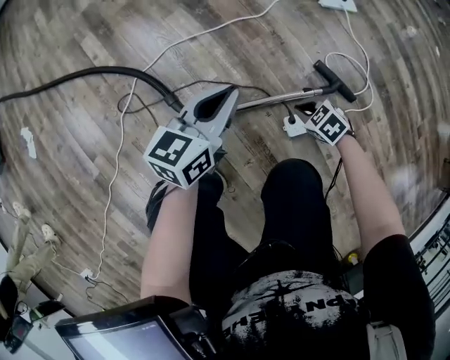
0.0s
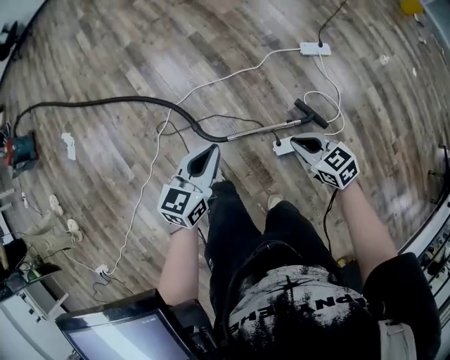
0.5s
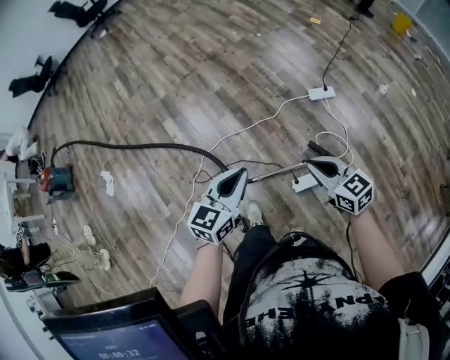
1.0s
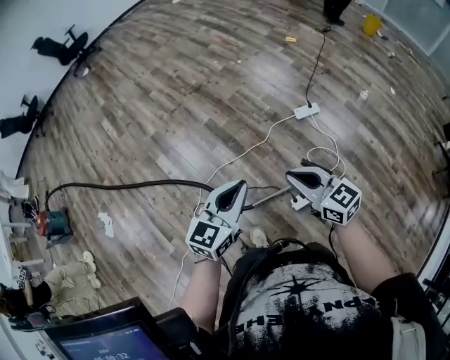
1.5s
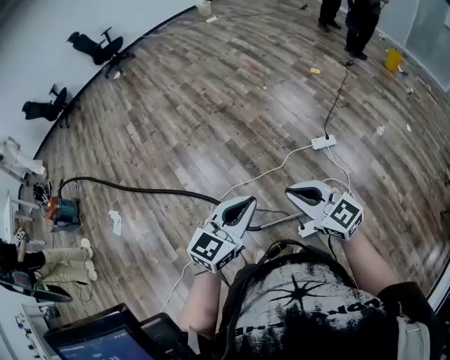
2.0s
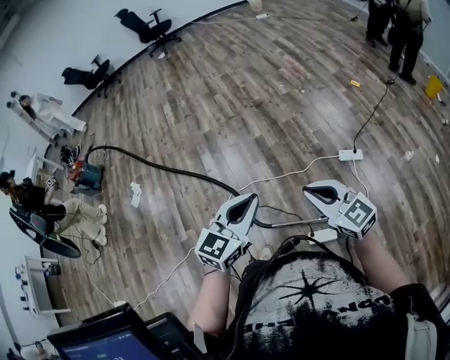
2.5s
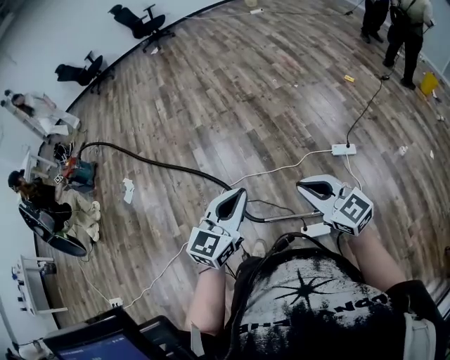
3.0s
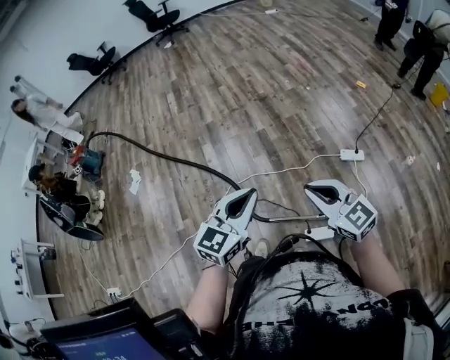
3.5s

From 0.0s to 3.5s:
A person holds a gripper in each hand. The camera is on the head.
From 0.0s to 2.0s: Both grippers move upward, about 70 cm. The left gripper rotates some 20 degrees; the right gripper points its fingers approximately 50 degrees further upward.
From 2.0s to 3.5s: The left gripper changes its angle by some 20 degrees.

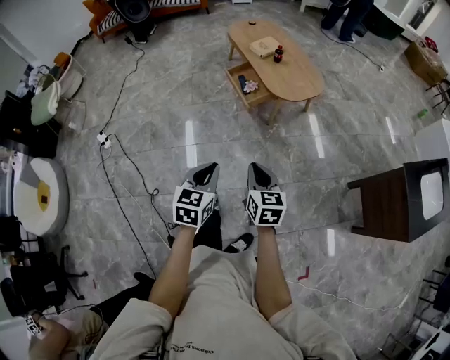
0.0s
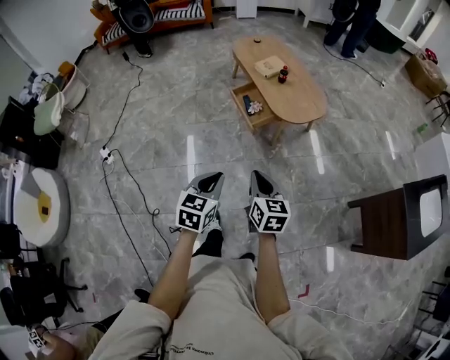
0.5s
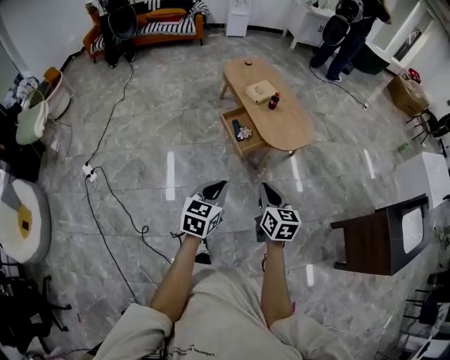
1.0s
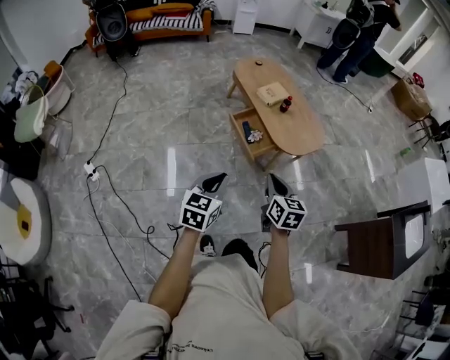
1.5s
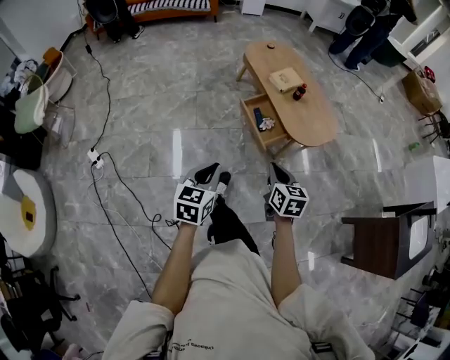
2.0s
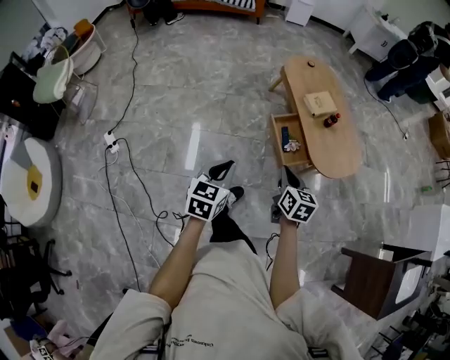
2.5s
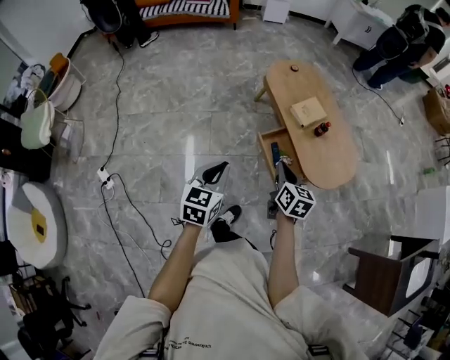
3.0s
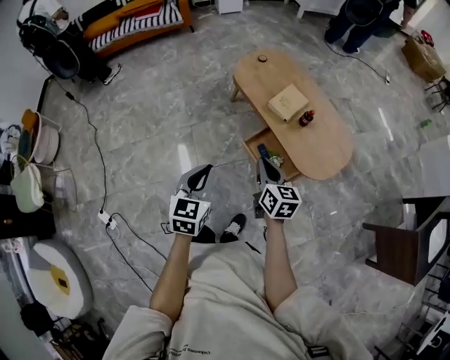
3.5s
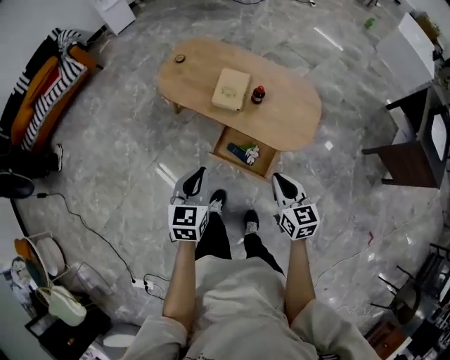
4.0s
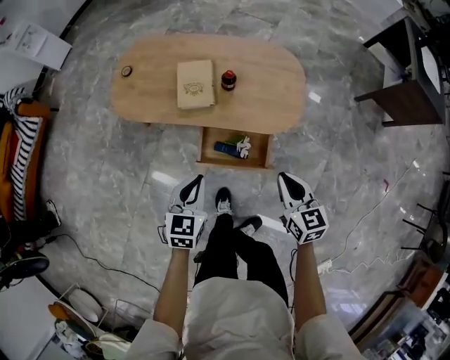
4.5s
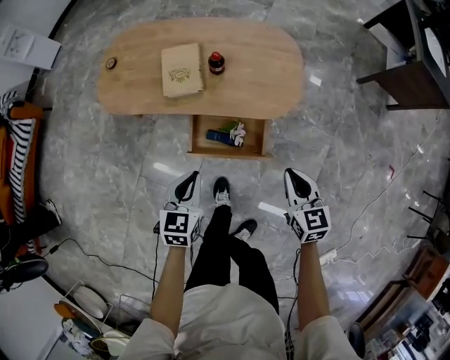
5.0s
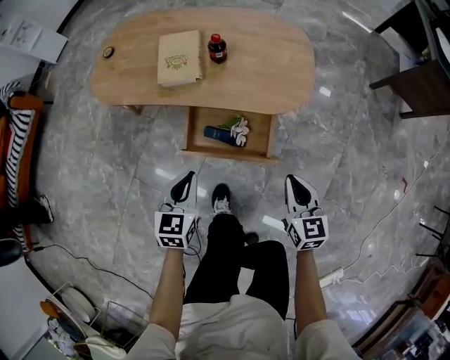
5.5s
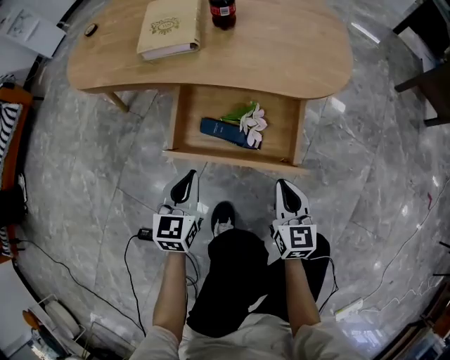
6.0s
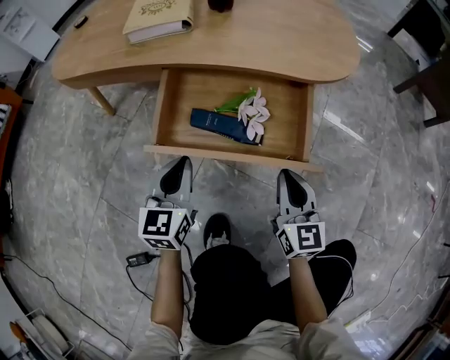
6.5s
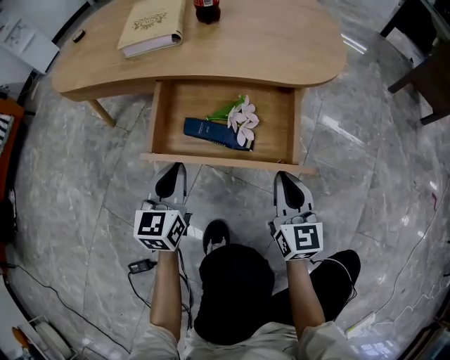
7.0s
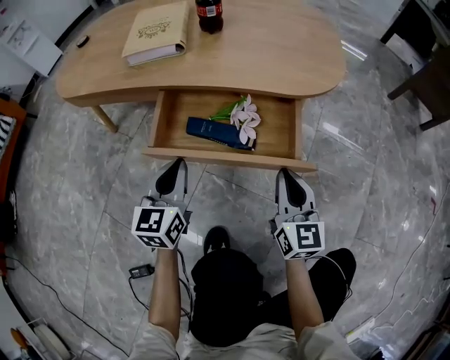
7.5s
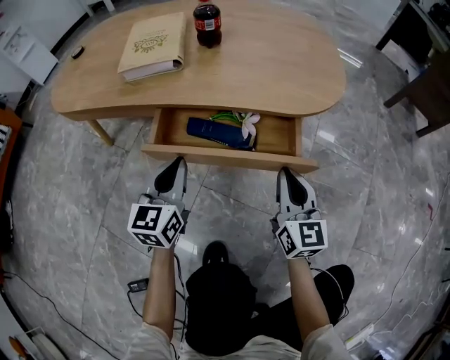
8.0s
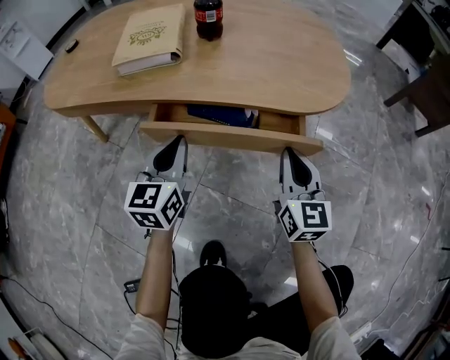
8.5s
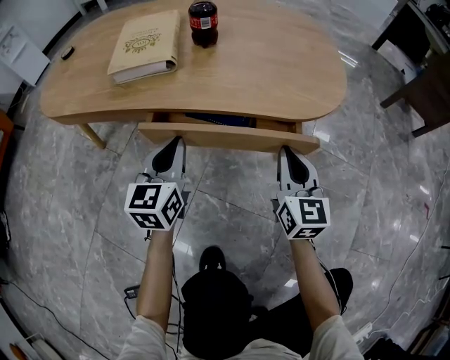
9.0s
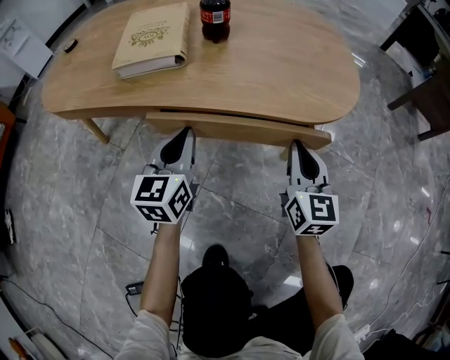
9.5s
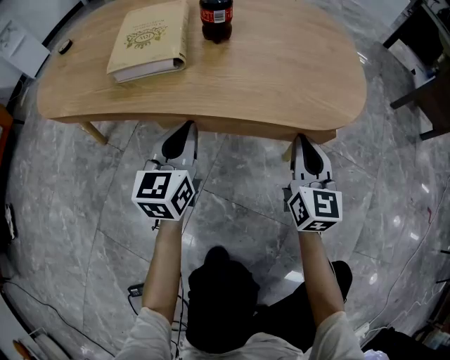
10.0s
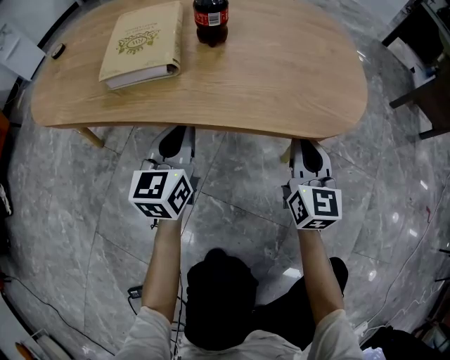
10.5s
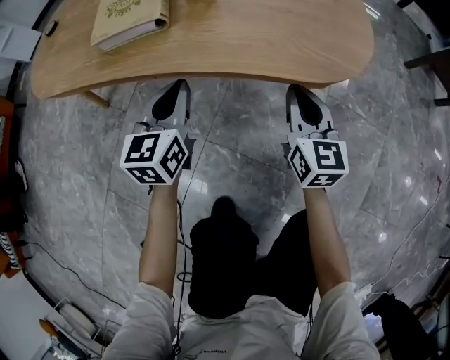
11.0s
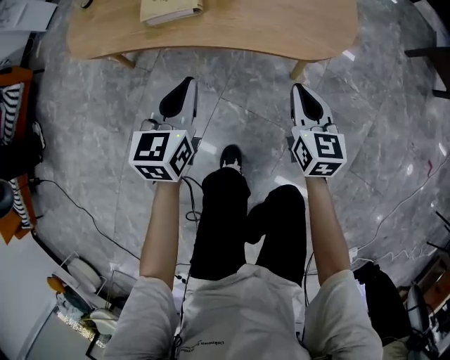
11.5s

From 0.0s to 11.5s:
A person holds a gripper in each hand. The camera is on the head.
From 0.0s to 2.0s: Both grippers travel together forward and to the left, some 30 cm.
From 2.0s to 4.0s: The left gripper ends up approximately 50 cm from where it was, and changes its angle by approximately 30 degrees. The right gripper moves some 35 cm, and turns by approximately 30 degrees.
From 4.0s to 6.0s: Both grippers move downward, approximately 50 cm. The right gripper swivels some 30 degrees.
From 6.0s to 7.5s: The left gripper heads forward, covering roughly 5 cm.
From 7.5s to 9.5s: The two grippers go some 15 cm forward.
From 9.5s to 11.5s: Both grippers travel together upward and backward, approximately 15 cm.

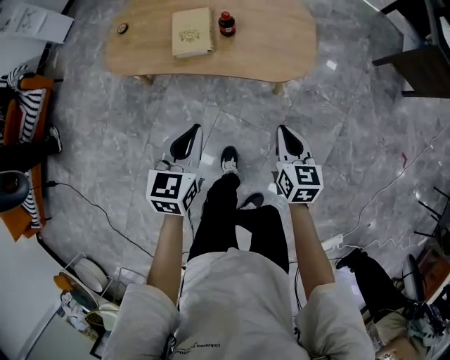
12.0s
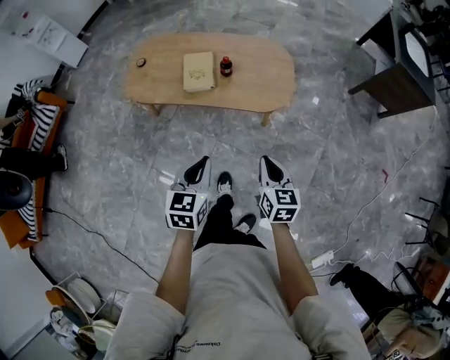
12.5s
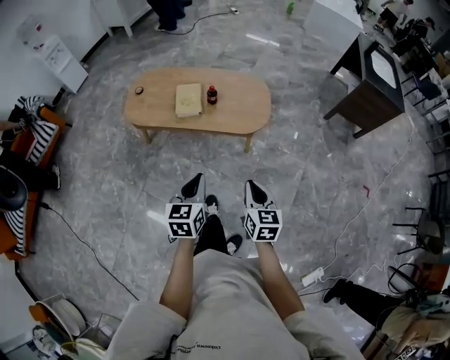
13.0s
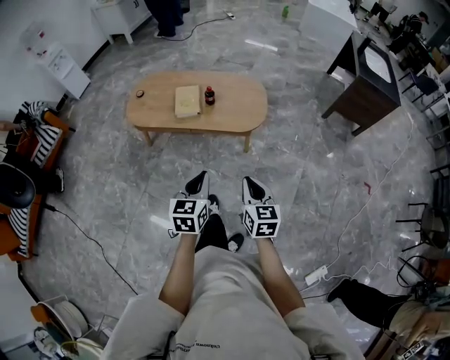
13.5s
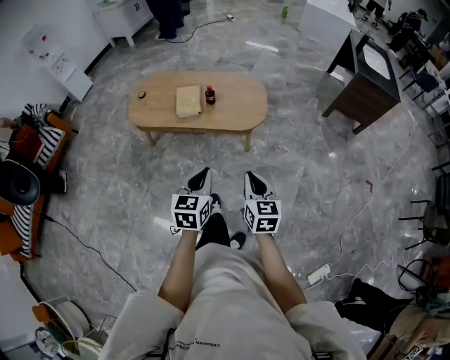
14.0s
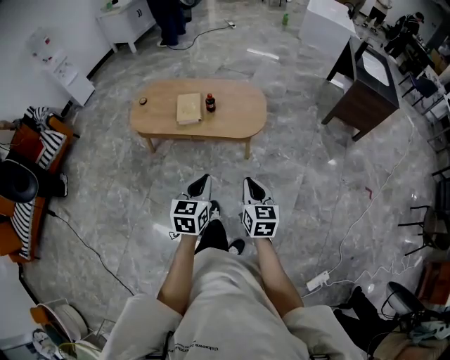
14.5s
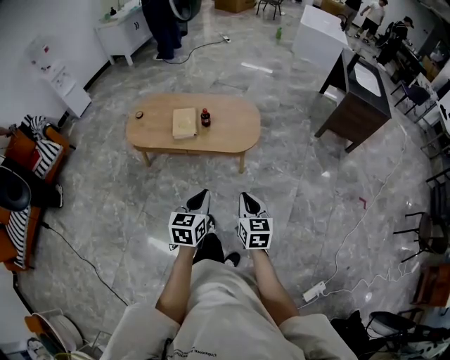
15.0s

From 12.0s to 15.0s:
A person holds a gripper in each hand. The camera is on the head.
From 12.0s to 13.5s: Both grippers travel together backward and upward, about 25 cm.
From 13.5s to 15.0s: There are only small adjustments of the grippers.

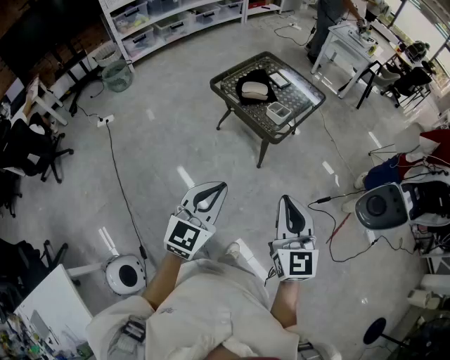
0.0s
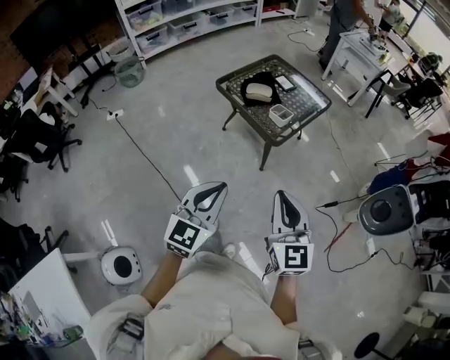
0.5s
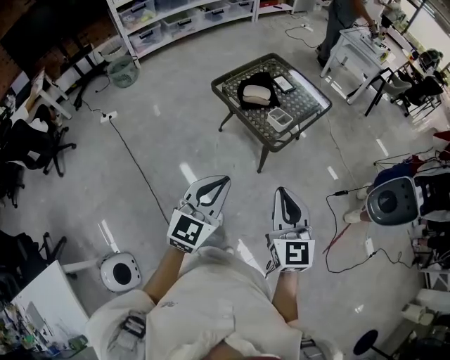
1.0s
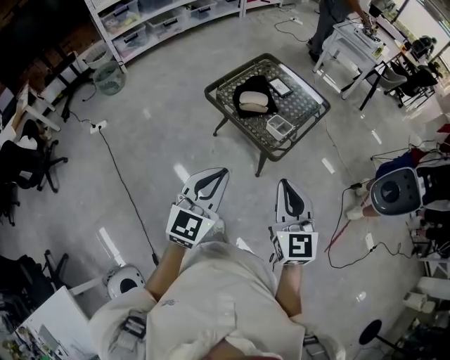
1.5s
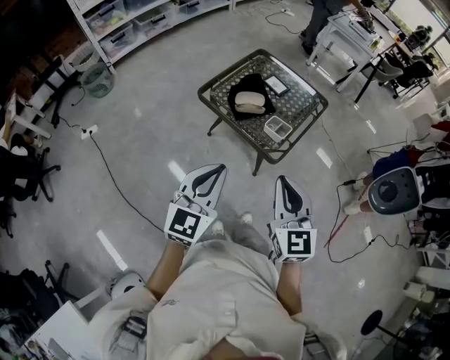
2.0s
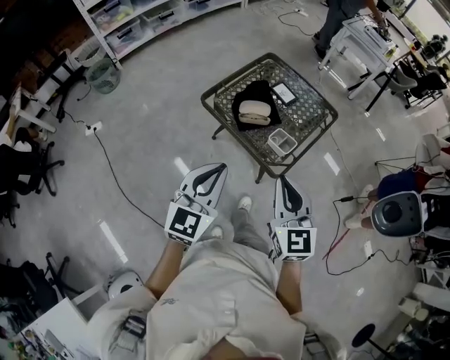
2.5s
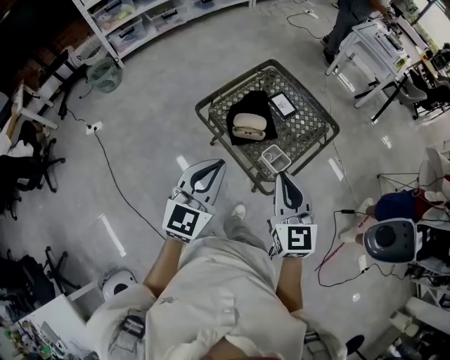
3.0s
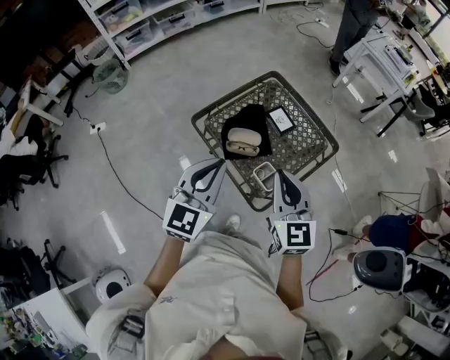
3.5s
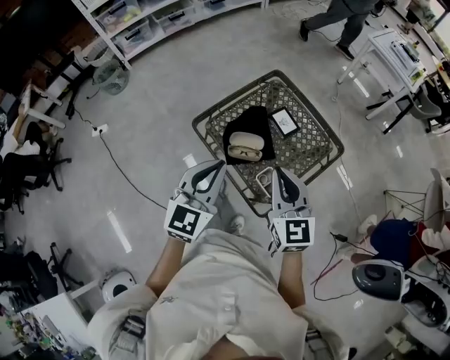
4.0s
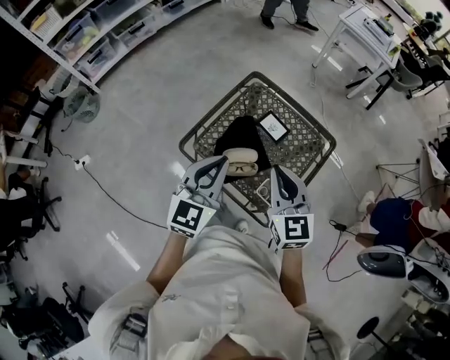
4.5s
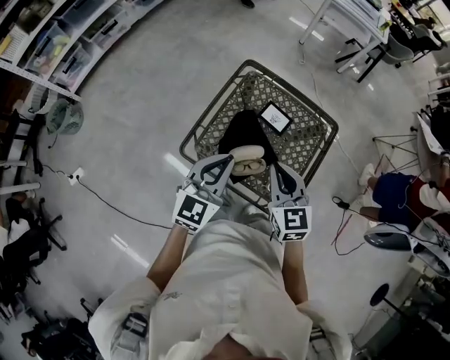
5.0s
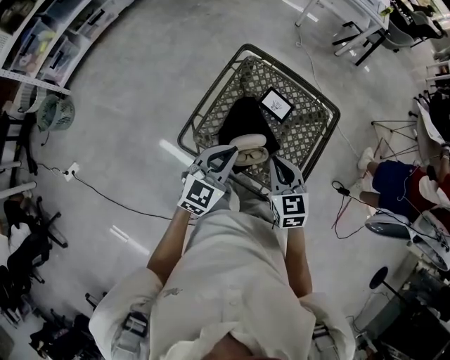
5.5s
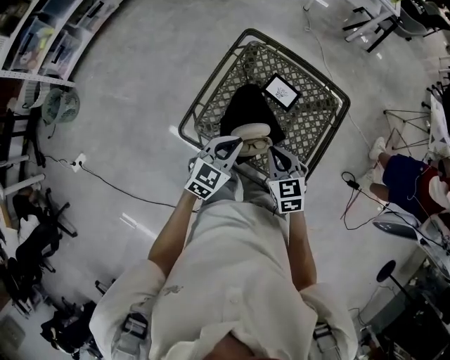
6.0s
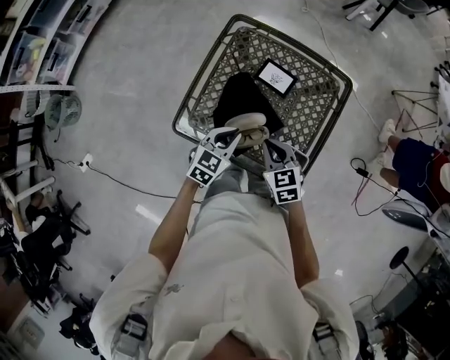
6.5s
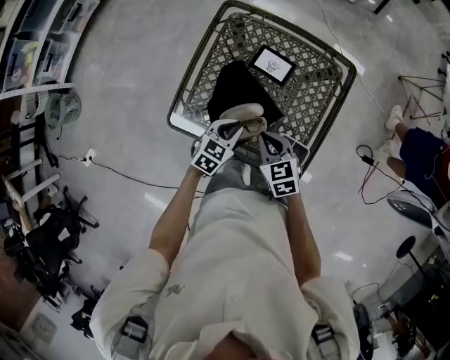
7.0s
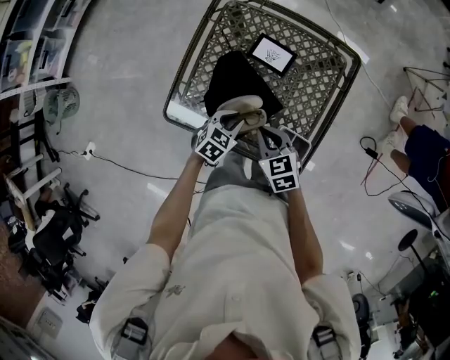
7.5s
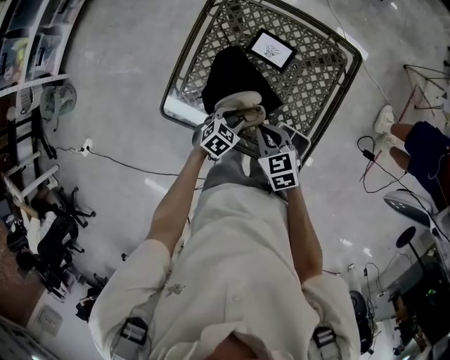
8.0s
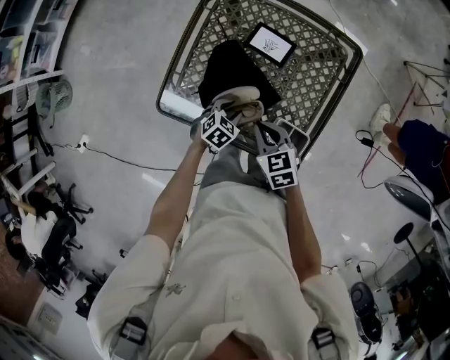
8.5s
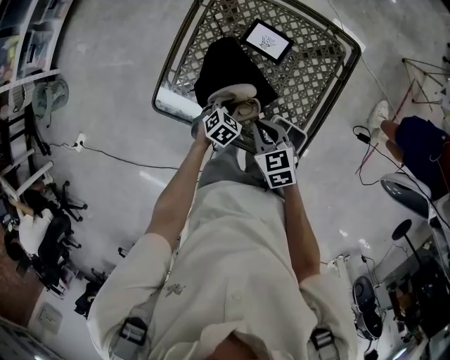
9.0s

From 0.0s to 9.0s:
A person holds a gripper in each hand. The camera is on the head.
From 0.0s to 2.0s: The two grippers go approximately 25 cm forward.
From 2.0s to 4.5s: Both grippers are carried forward, approximately 40 cm.
From 4.5s to 7.0s: Both grippers move downward, approximately 30 cm. The right gripper points its fingers some 30 degrees further downward. Meanwhile the left gripper tips its fingers downward by some 30 degrees.
From 7.0s to 9.0s: The left gripper goes some 10 cm downward, and swivels roughly 20 degrees.
